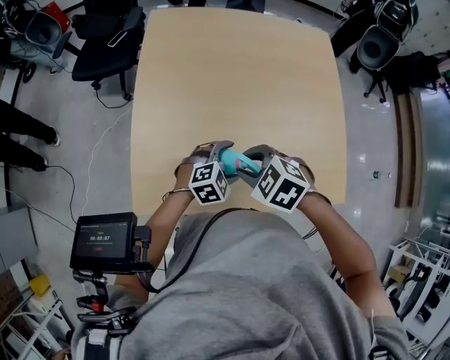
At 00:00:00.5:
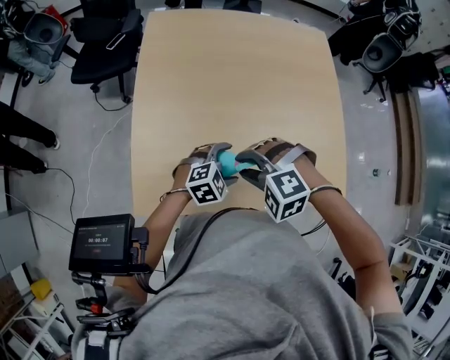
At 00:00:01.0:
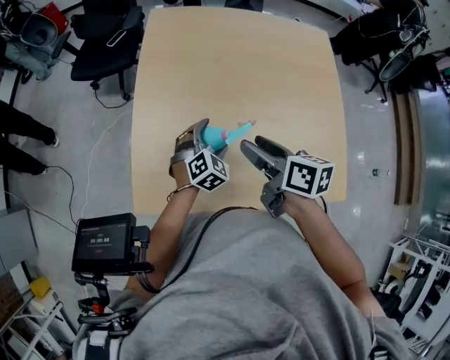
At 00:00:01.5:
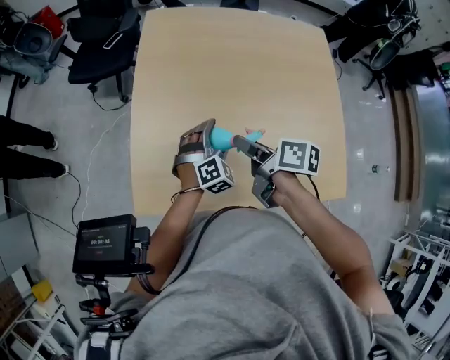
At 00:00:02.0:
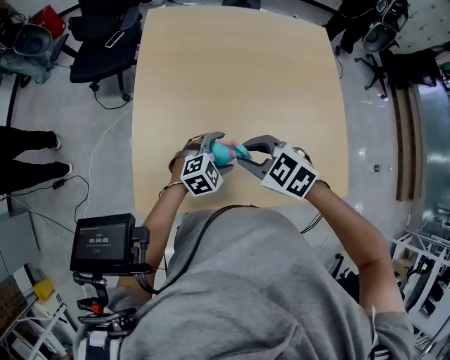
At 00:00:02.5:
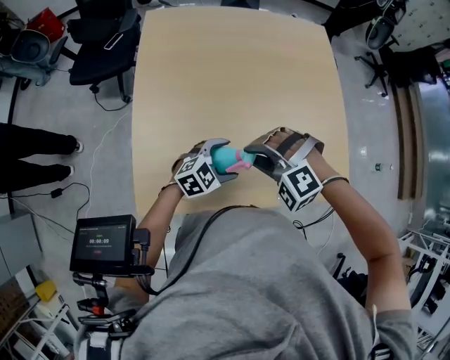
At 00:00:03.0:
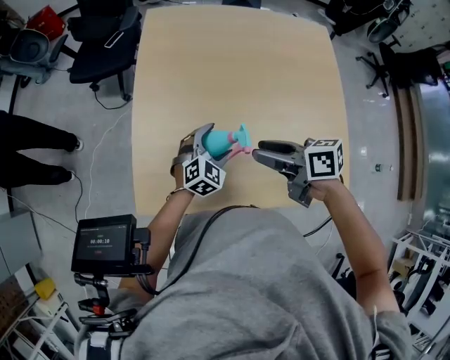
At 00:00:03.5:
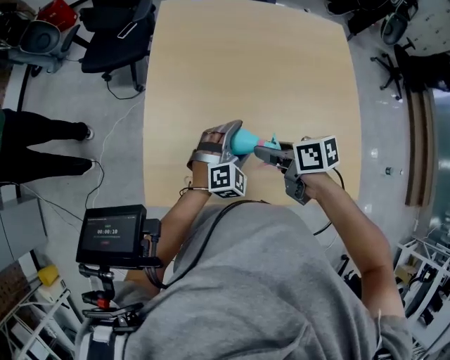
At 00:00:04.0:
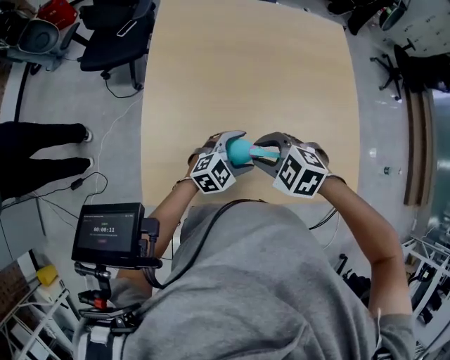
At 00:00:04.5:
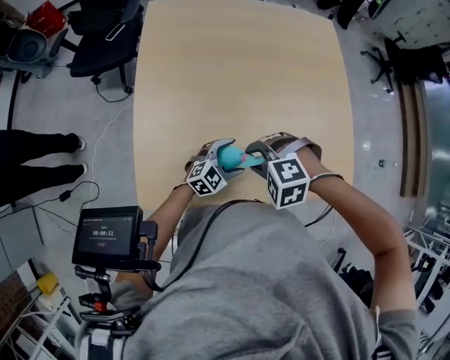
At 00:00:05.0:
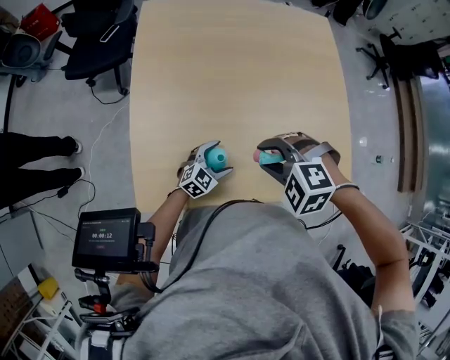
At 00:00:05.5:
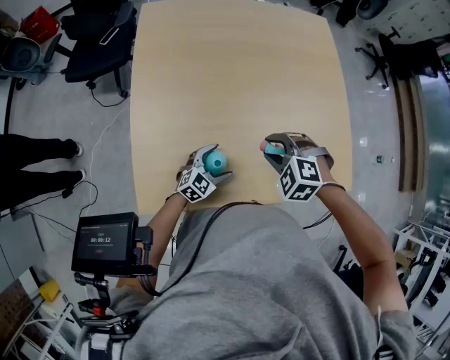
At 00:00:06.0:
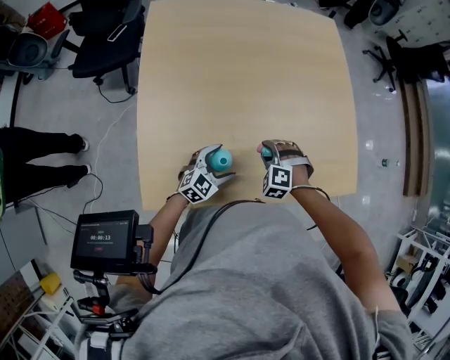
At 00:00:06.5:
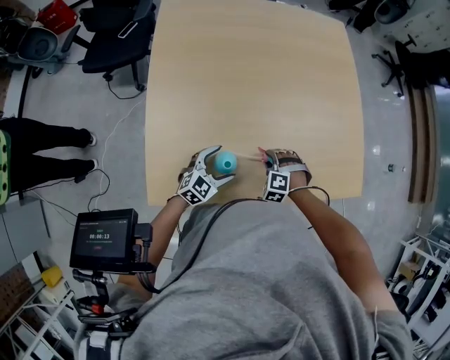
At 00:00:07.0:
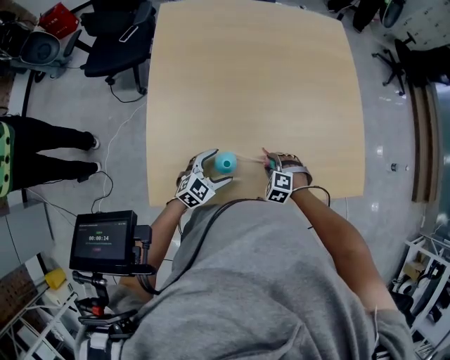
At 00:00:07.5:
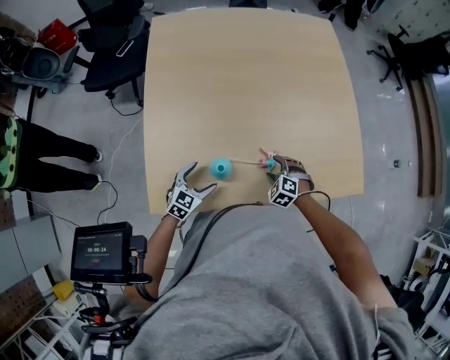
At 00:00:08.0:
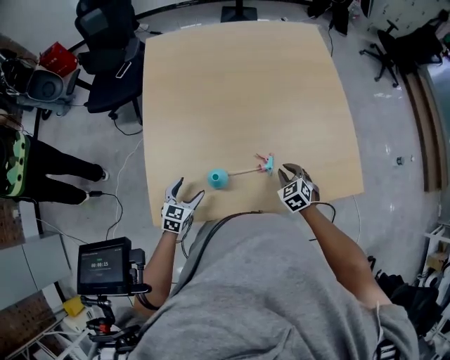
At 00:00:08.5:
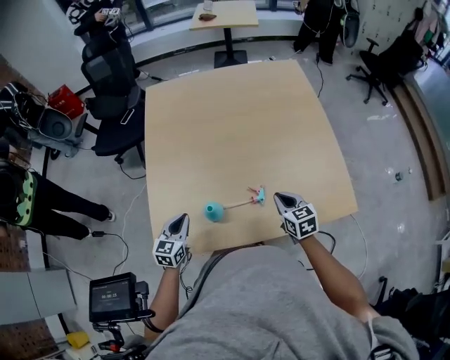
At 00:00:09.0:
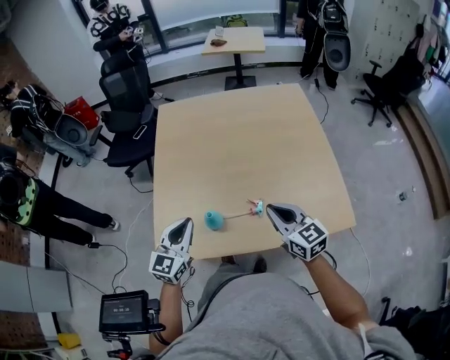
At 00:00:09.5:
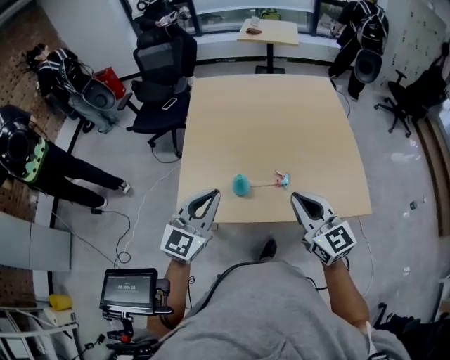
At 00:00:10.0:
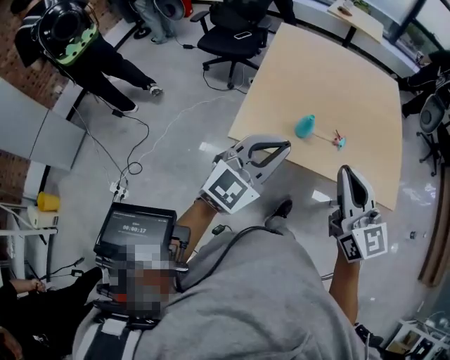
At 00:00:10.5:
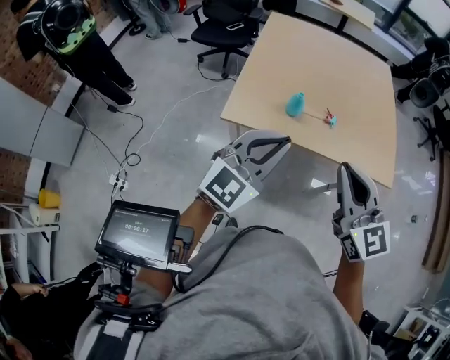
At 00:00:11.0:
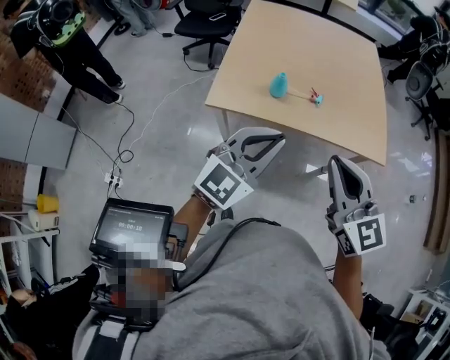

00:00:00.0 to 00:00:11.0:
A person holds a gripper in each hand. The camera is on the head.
00:00:00.0 to 00:00:02.0: The right gripper opens, then closes once more.
00:00:02.0 to 00:00:03.5: The left gripper turns by some 30 degrees. Meanwhile the right gripper twists about 60 degrees clockwise, seen from behind.
00:00:03.5 to 00:00:05.5: The left gripper travels downward by about 10 cm, and rotates about 40 degrees. The right gripper ends up approximately 5 cm from where it was, and rolls counterclockwise, seen from behind, by roughly 80 degrees.
00:00:05.5 to 00:00:07.5: The left gripper goes about 10 cm to the left and backward. The right gripper shifts some 20 cm downward, and opens.
00:00:07.5 to 00:00:09.0: The two grippers go roughly 30 cm upward. The right gripper points its fingers roughly 50 degrees further upward, and closes up; the left gripper rotates approximately 30 degrees, and closes its fingers.
00:00:09.0 to 00:00:11.0: The grippers both shift backward by about 35 cm.

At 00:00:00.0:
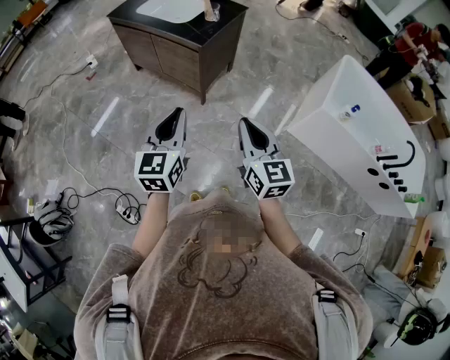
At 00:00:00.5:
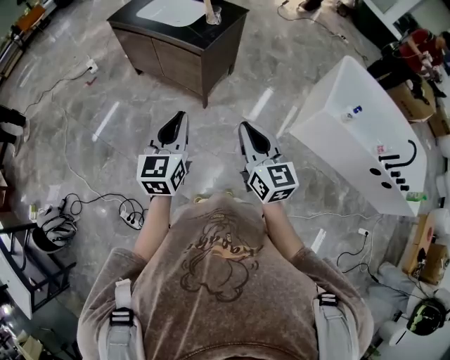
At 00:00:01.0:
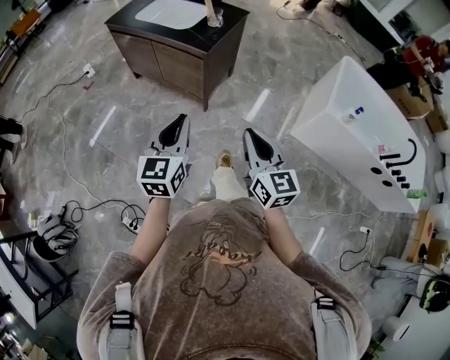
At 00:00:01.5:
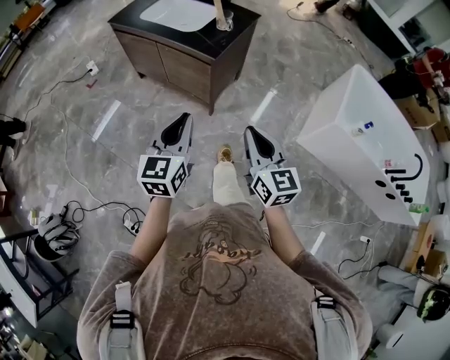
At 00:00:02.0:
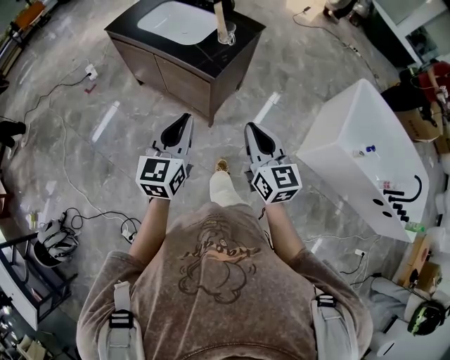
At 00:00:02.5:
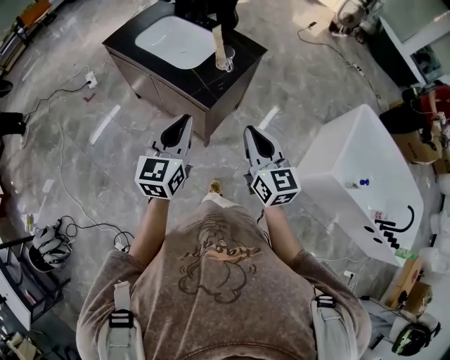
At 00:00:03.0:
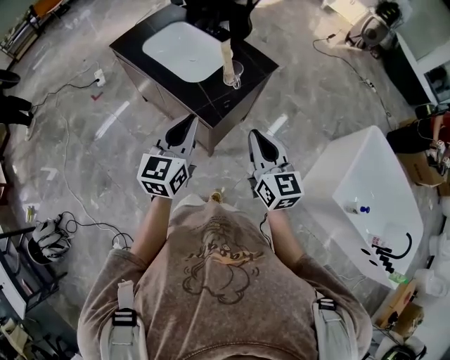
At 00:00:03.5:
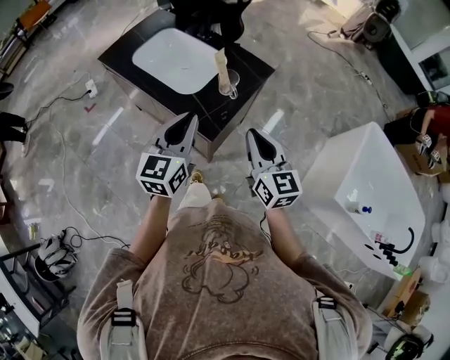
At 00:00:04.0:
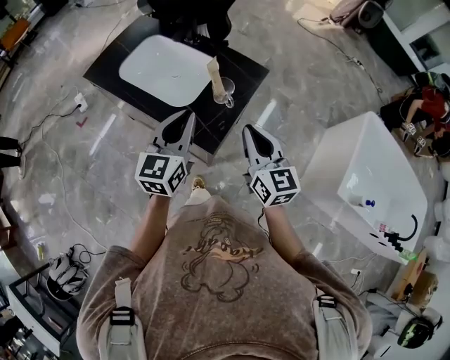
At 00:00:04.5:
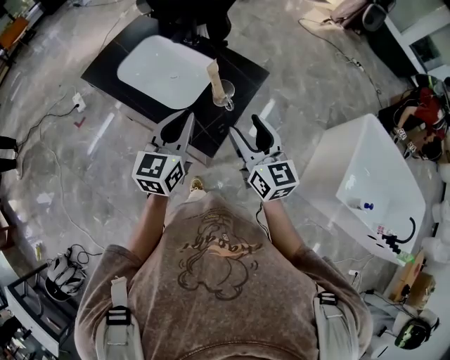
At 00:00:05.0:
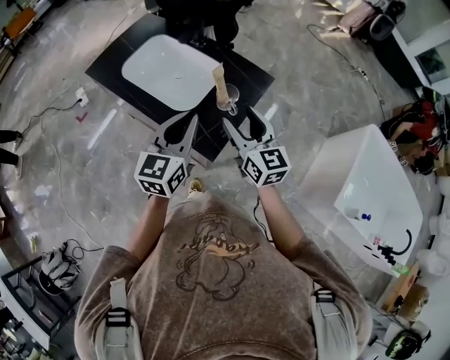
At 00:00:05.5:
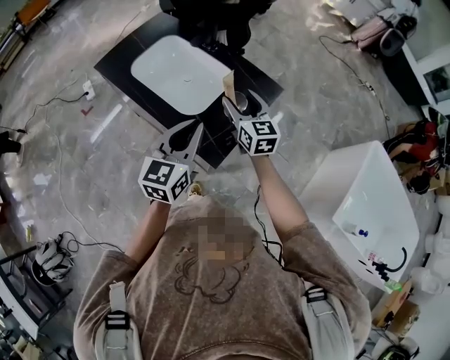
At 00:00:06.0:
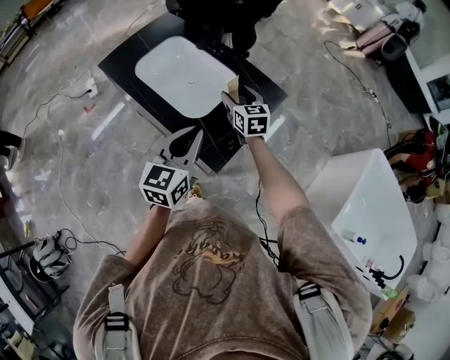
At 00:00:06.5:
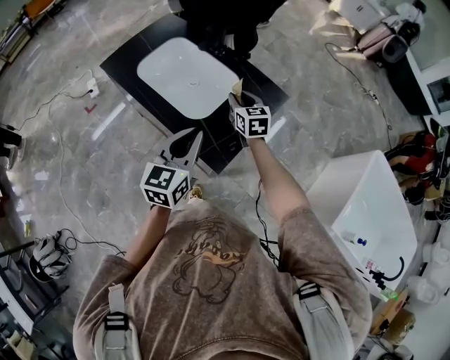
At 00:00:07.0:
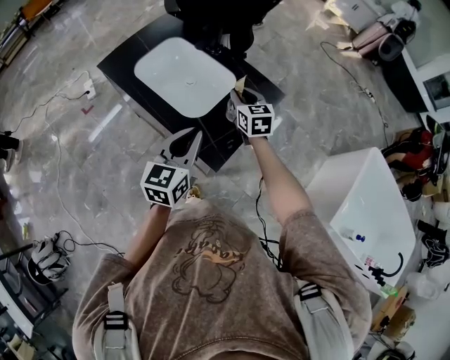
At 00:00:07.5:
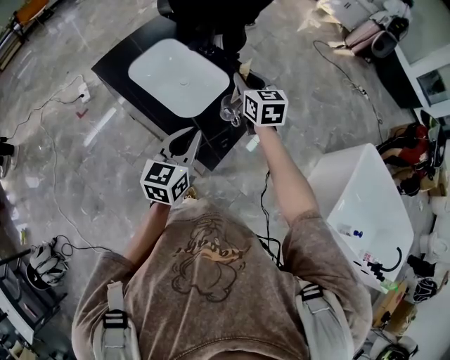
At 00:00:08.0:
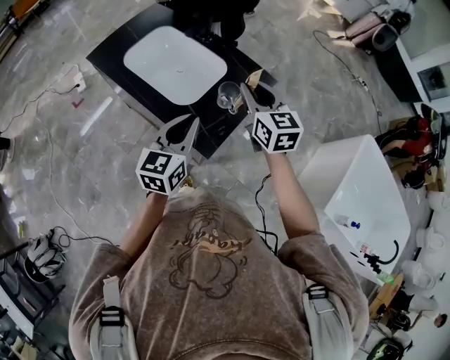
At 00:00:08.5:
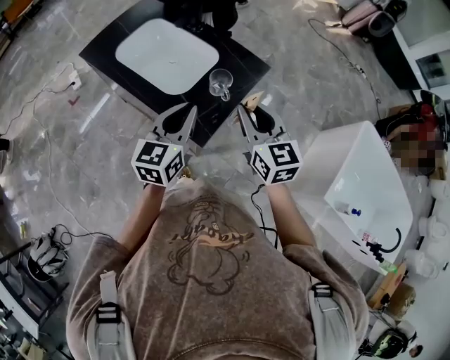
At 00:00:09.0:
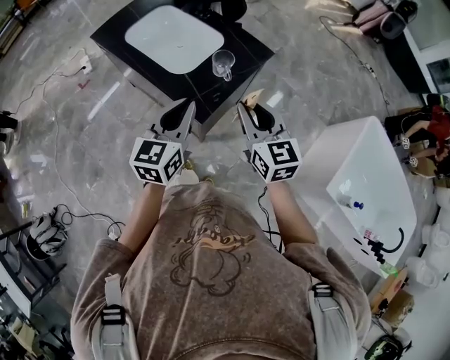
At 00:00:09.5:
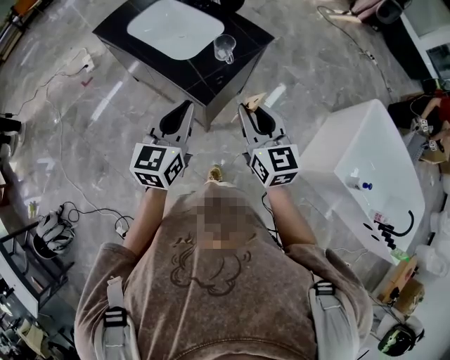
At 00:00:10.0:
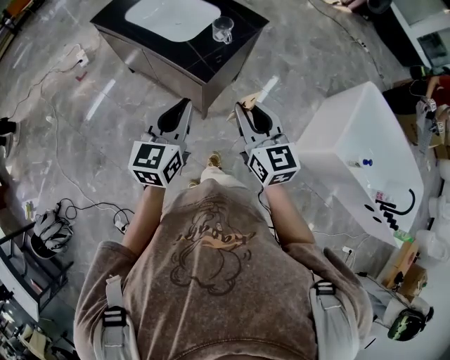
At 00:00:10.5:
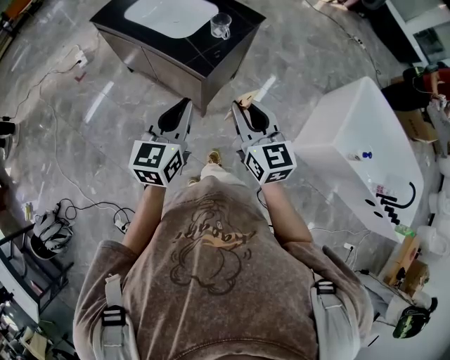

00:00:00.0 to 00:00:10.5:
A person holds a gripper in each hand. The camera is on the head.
00:00:00.0 to 00:00:02.0: Both grippers move forward, about 20 cm.
00:00:02.0 to 00:00:04.0: The two grippers go some 30 cm forward.
00:00:04.0 to 00:00:06.5: The right gripper travels forward and downward by some 30 cm, turns by about 20 degrees, and opens, then closes again.
00:00:06.5 to 00:00:08.5: The right gripper heads backward and upward, covering some 25 cm.
00:00:08.5 to 00:00:10.5: Both grippers move backward, approximately 25 cm.

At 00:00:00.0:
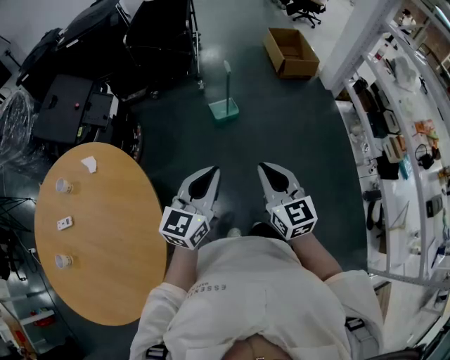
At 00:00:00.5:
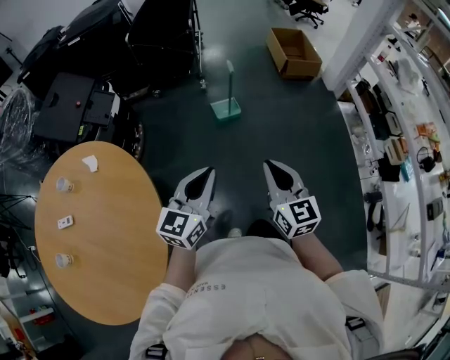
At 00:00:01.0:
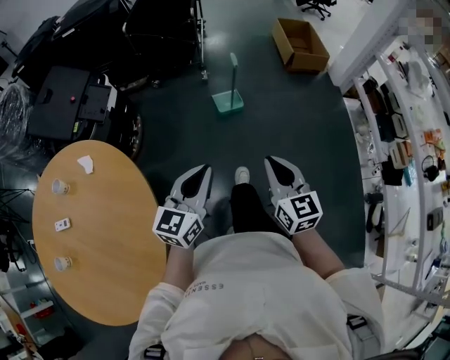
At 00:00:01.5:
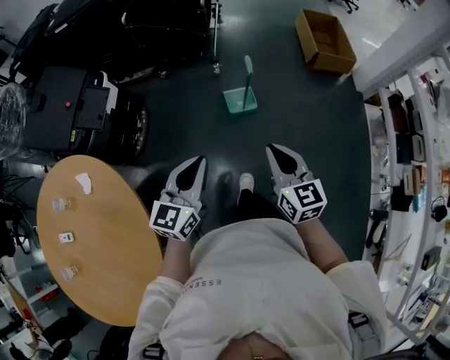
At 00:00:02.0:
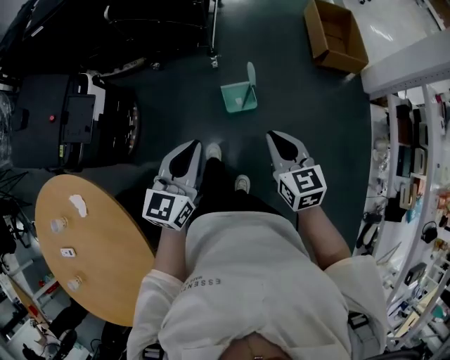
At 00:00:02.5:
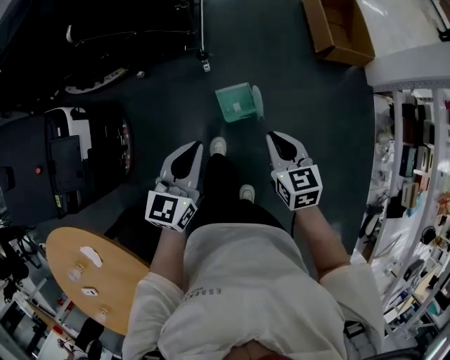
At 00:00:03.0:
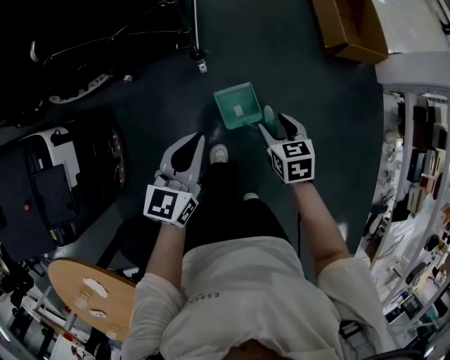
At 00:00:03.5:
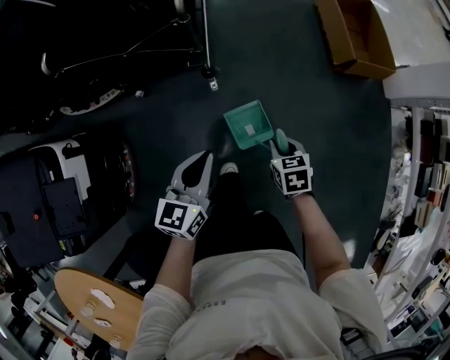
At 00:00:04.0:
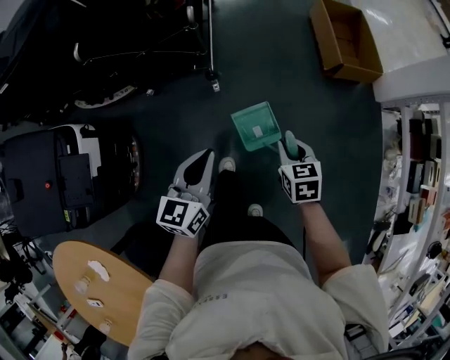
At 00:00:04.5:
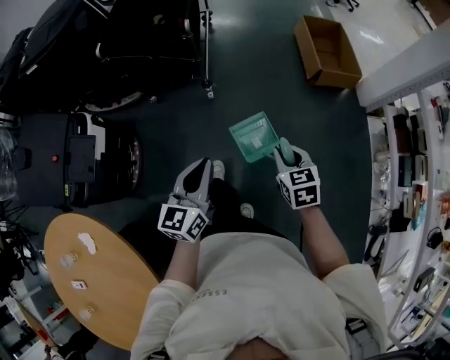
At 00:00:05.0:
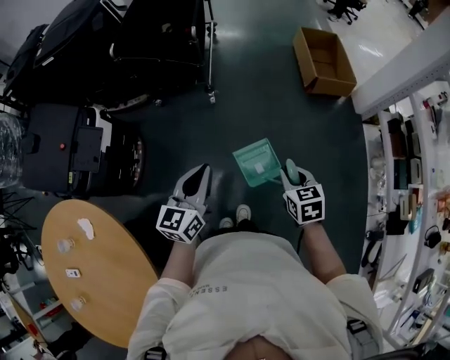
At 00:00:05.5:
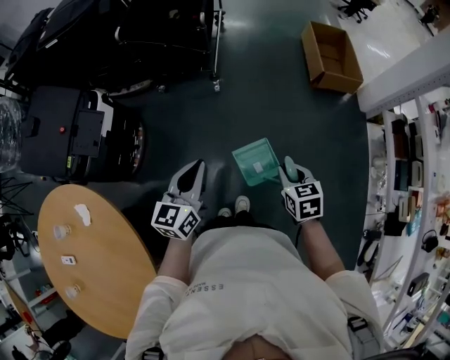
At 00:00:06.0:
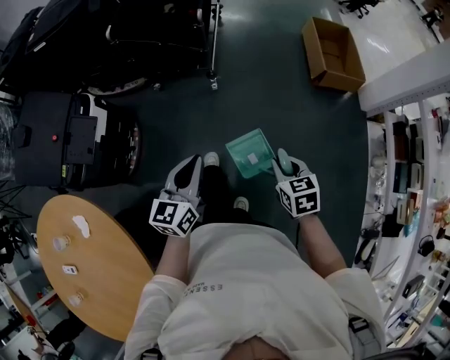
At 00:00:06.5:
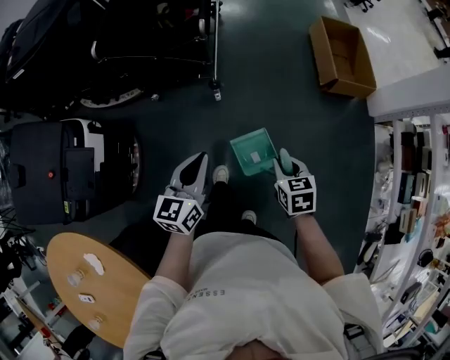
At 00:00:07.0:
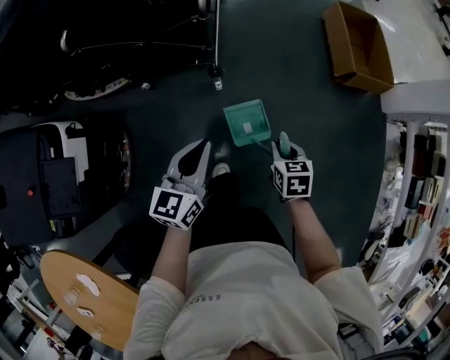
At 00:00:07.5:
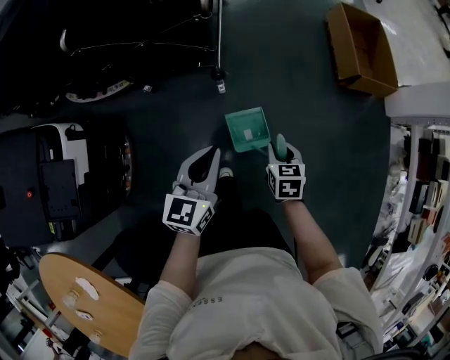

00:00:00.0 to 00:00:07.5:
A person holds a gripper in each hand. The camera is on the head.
00:00:00.0 to 00:00:02.0: The pair of grippers is taken forward, approximately 50 cm.
00:00:02.0 to 00:00:04.0: Both grippers travel together forward and downward, about 25 cm. The right gripper swivels roughly 30 degrees, and opens, then closes once more.
00:00:04.0 to 00:00:05.5: Both grippers move backward, roughly 25 cm.
00:00:05.5 to 00:00:07.5: Both grippers move forward and downward, roughly 40 cm.
